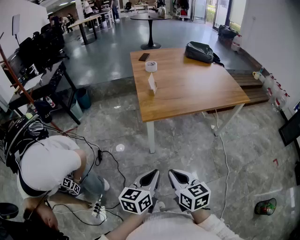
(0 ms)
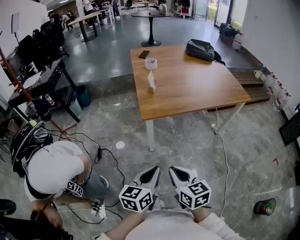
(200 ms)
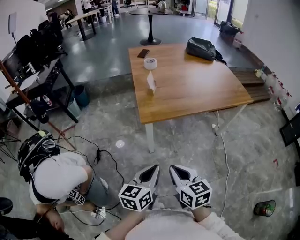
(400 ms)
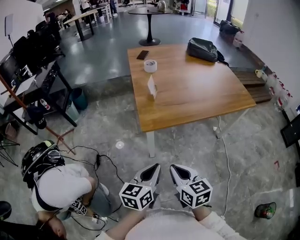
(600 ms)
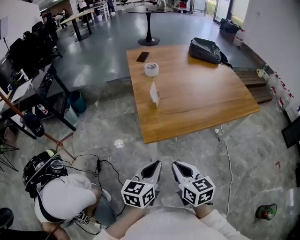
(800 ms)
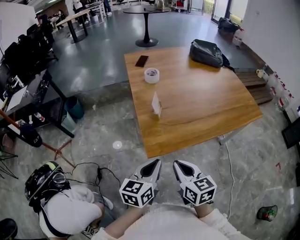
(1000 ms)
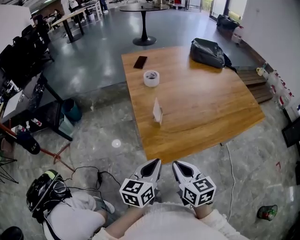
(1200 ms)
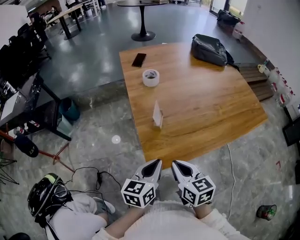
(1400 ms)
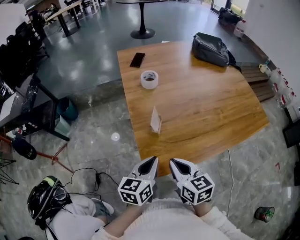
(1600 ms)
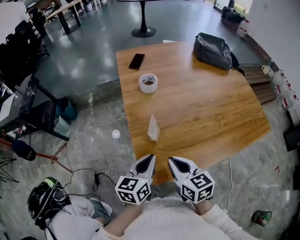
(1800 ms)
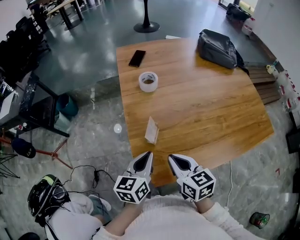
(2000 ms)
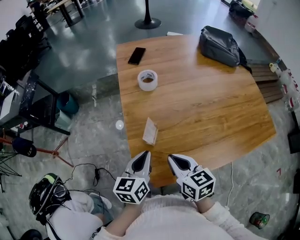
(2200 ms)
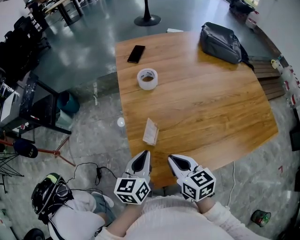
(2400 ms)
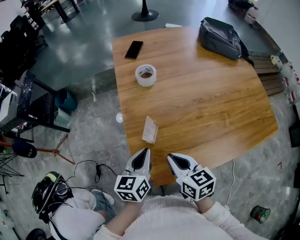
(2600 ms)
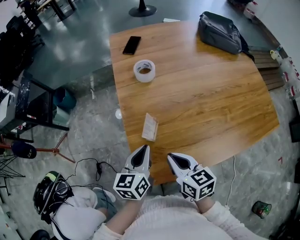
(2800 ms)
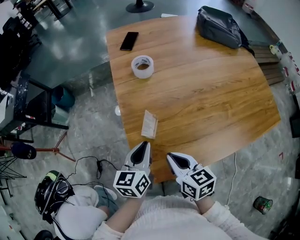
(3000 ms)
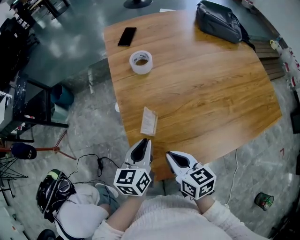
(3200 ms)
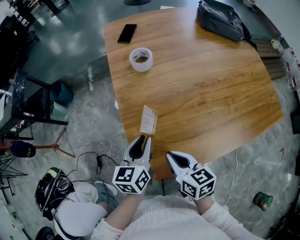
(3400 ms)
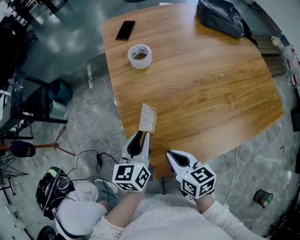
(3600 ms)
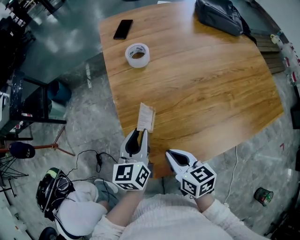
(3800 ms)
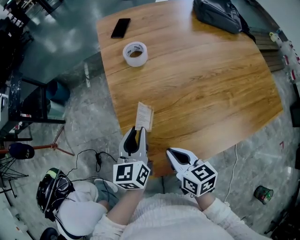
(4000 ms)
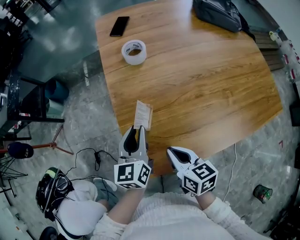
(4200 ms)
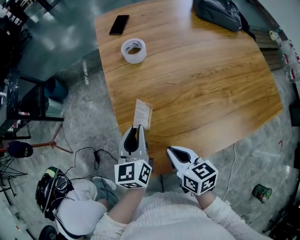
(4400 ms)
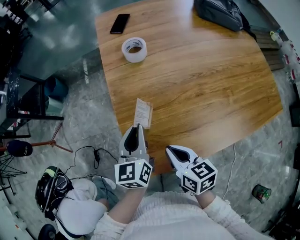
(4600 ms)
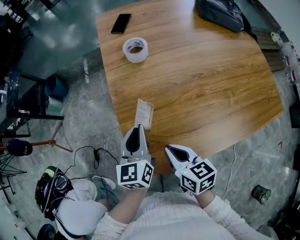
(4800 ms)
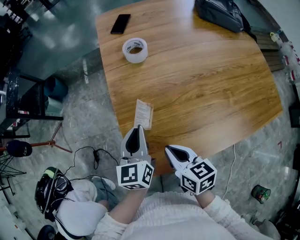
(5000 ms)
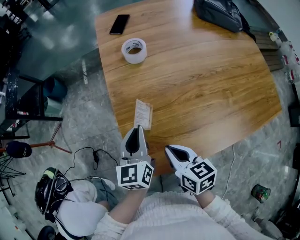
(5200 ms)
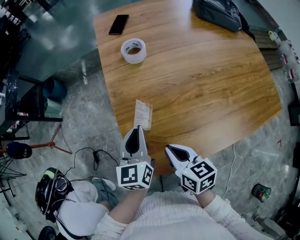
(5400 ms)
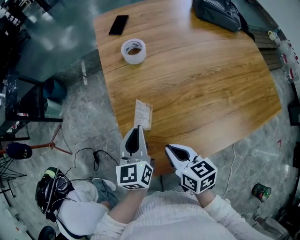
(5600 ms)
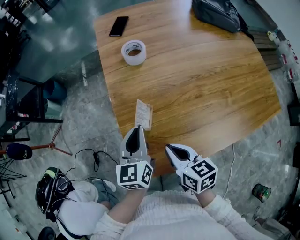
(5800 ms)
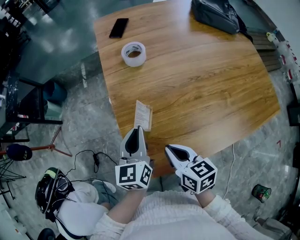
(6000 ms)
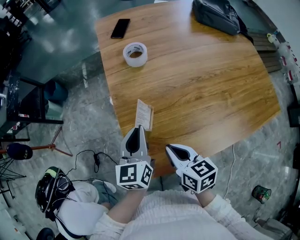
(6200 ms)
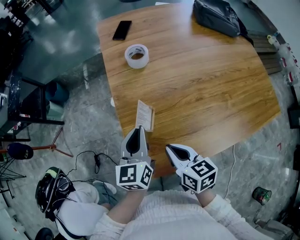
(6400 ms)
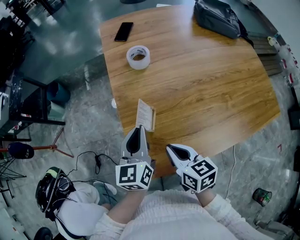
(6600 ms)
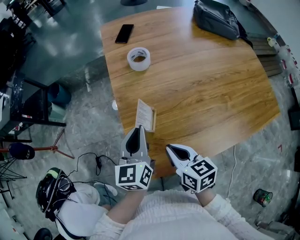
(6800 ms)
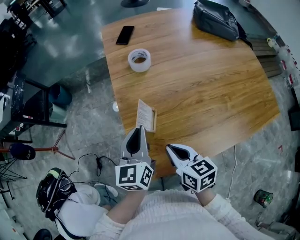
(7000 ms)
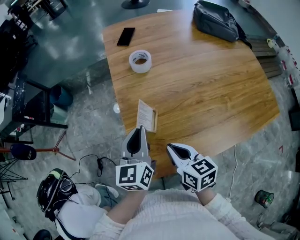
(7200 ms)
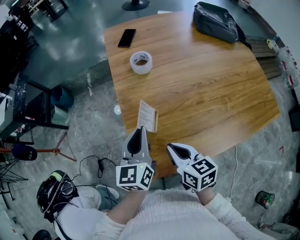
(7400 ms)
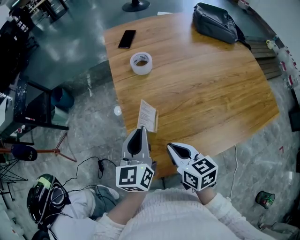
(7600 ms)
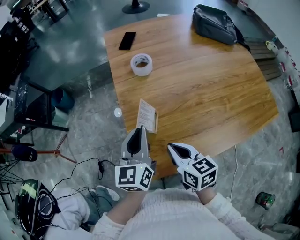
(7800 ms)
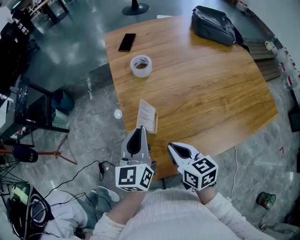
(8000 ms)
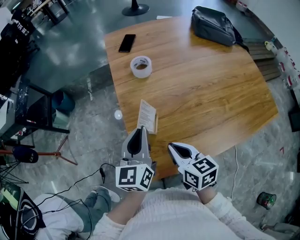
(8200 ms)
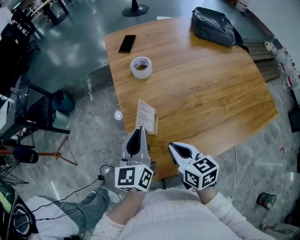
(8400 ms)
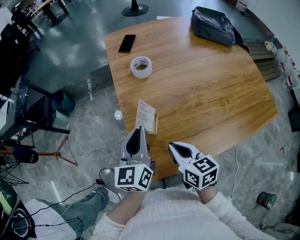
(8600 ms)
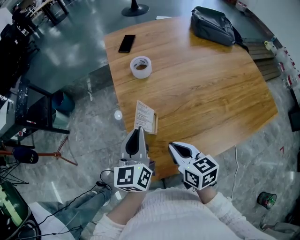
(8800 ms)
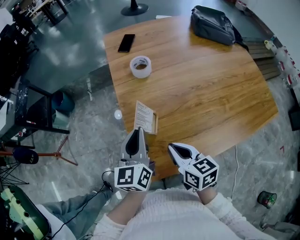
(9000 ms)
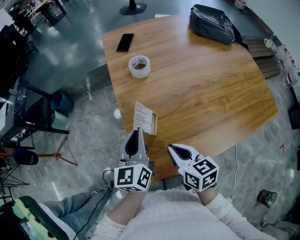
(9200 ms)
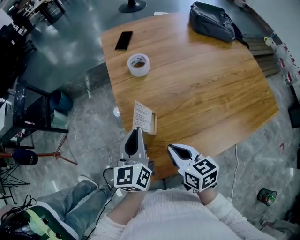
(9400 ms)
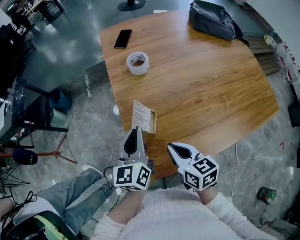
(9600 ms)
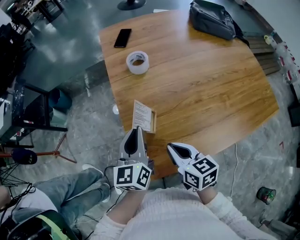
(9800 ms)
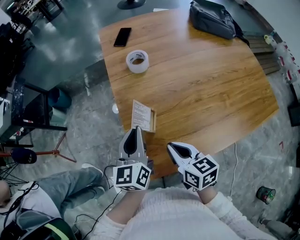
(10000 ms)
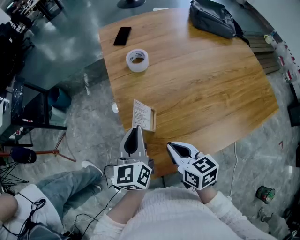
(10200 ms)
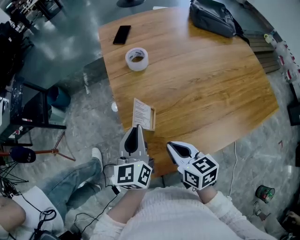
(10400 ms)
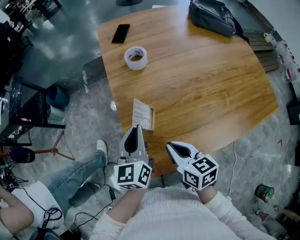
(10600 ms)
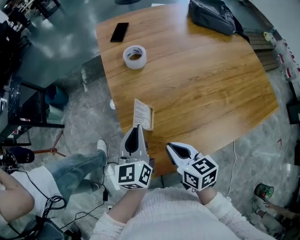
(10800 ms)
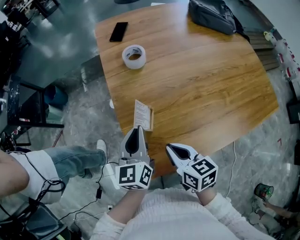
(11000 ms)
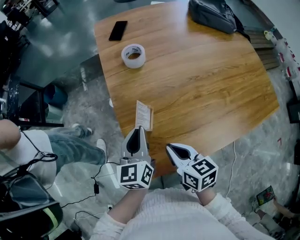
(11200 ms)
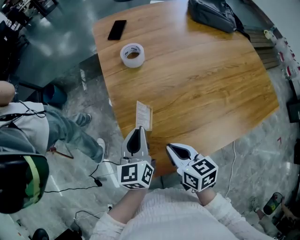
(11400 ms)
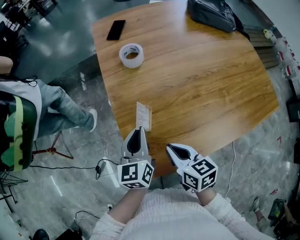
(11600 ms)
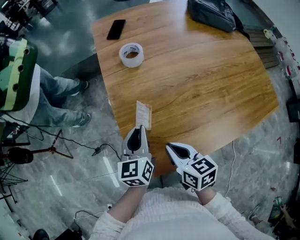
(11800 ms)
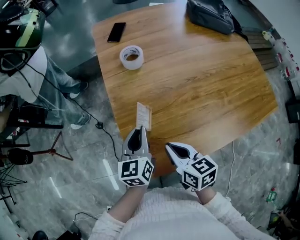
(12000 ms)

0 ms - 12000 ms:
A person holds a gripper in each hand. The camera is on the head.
0 ms - 1600 ms: The pair of grippers is taken forward, some 40 cm.
1600 ms - 3000 ms: Both grippers move forward, approximately 10 cm.
3000 ms - 6000 ms: The grippers move only a little.
6000 ms - 7600 ms: The left gripper goes some 5 cm upward.
7600 ms - 10400 ms: The grippers make only small movements.
10400 ms - 12000 ms: The left gripper shifts some 5 cm downward.

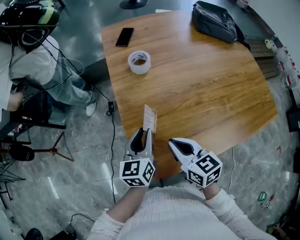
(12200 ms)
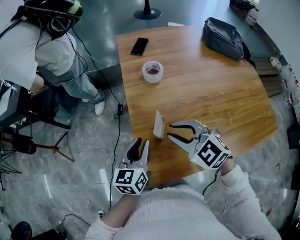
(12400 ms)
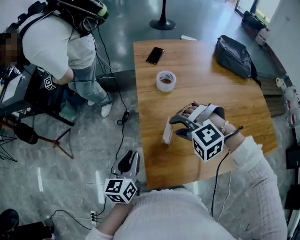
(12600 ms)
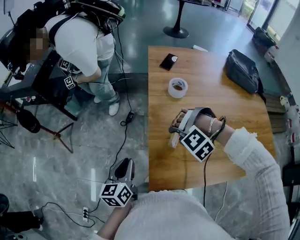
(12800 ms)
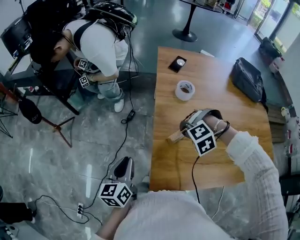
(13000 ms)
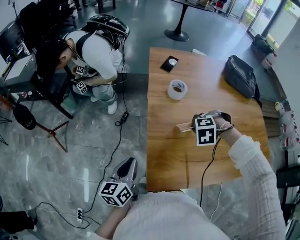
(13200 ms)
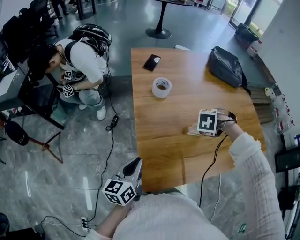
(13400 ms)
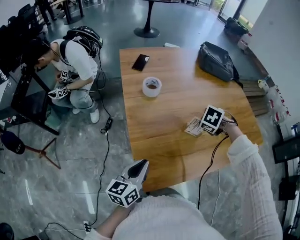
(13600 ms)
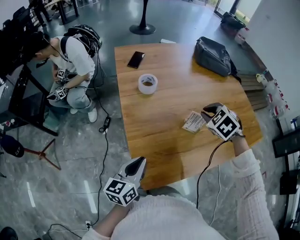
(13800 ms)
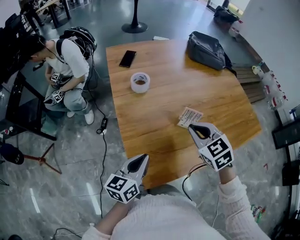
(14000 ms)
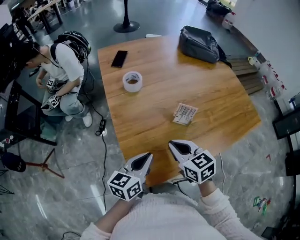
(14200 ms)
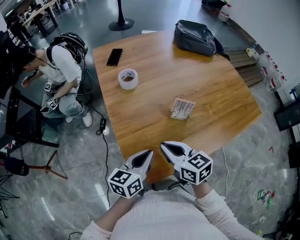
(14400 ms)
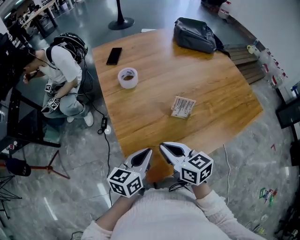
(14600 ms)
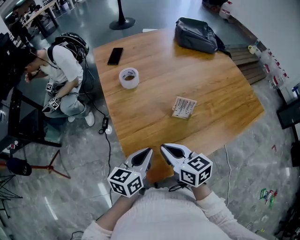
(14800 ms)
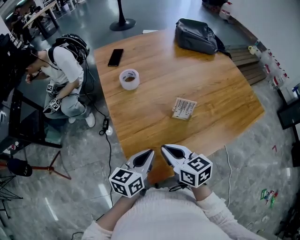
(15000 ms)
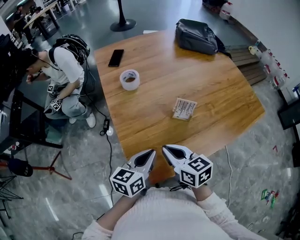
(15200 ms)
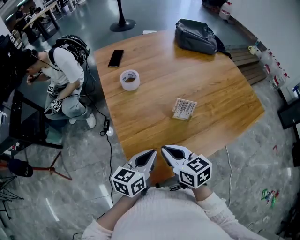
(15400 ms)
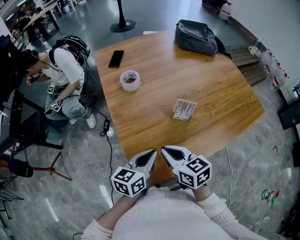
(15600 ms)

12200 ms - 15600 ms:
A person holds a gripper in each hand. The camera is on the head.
12200 ms - 13800 ms: The right gripper swings up and down, approximately 10 cm each way, with 2 reversals, points its fingers about 30 degrees further downward, and opens, then closes again.
13800 ms - 15600 ms: The right gripper shifts roughly 20 cm backward and to the left, and tilts its fingers approximately 30 degrees upward; the left gripper heads to the right, covering approximately 10 cm.

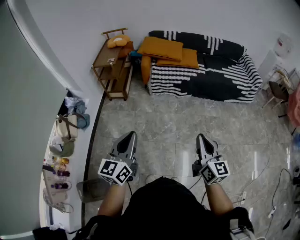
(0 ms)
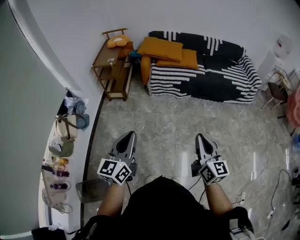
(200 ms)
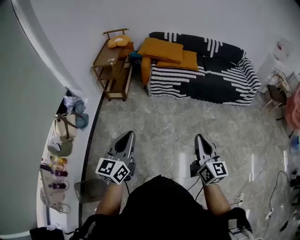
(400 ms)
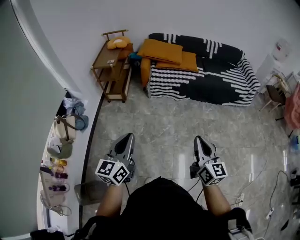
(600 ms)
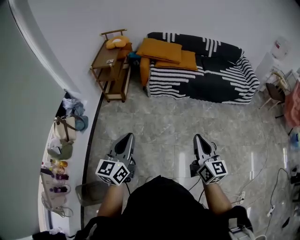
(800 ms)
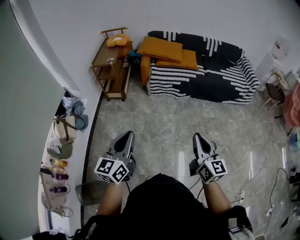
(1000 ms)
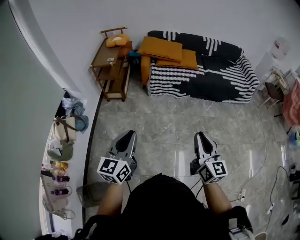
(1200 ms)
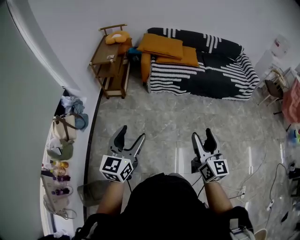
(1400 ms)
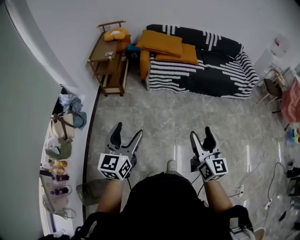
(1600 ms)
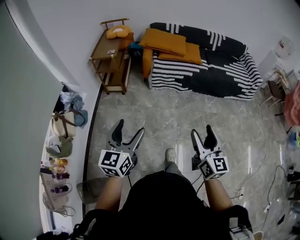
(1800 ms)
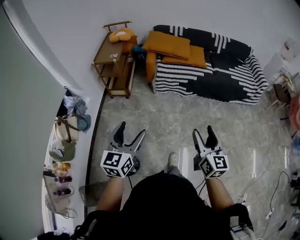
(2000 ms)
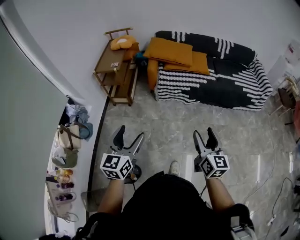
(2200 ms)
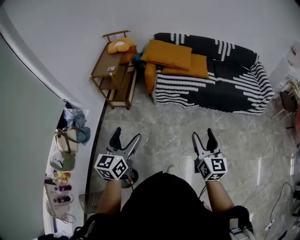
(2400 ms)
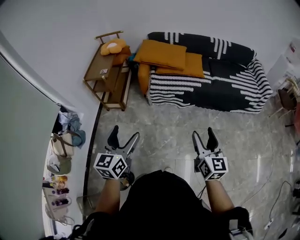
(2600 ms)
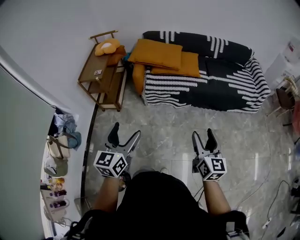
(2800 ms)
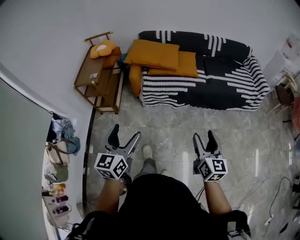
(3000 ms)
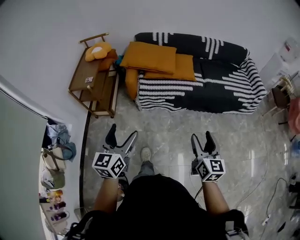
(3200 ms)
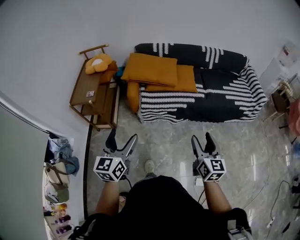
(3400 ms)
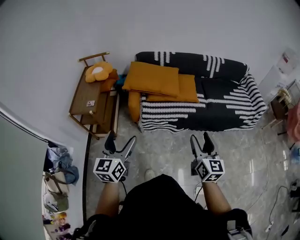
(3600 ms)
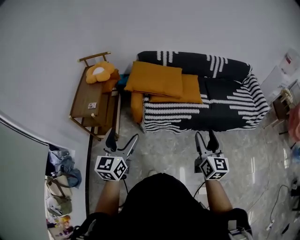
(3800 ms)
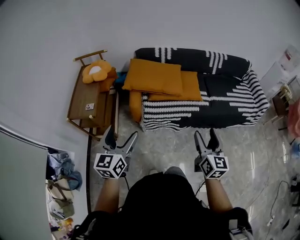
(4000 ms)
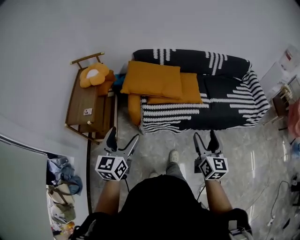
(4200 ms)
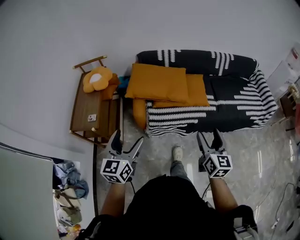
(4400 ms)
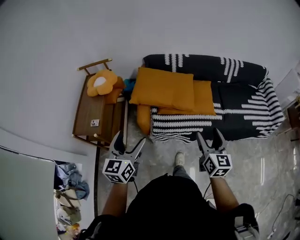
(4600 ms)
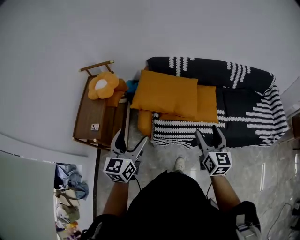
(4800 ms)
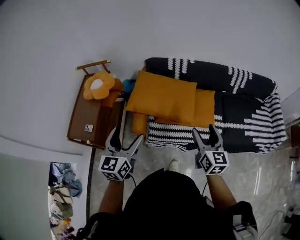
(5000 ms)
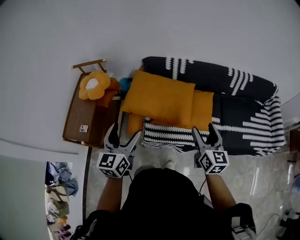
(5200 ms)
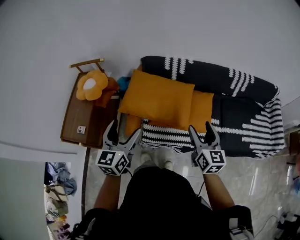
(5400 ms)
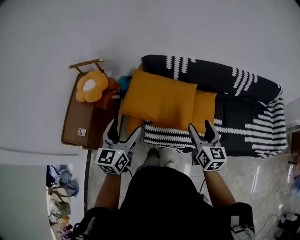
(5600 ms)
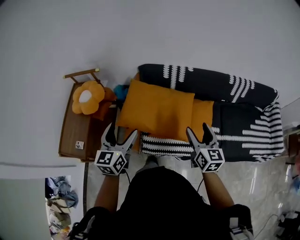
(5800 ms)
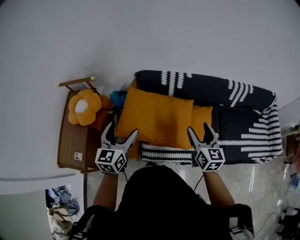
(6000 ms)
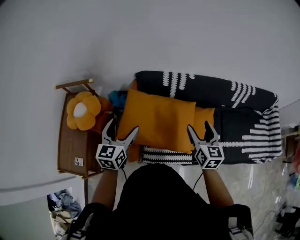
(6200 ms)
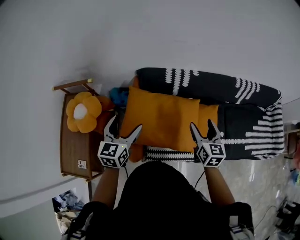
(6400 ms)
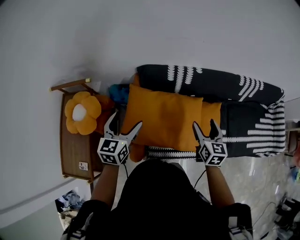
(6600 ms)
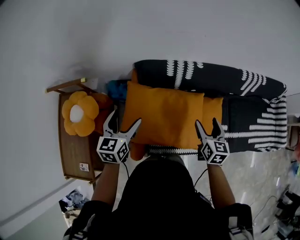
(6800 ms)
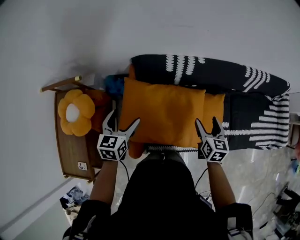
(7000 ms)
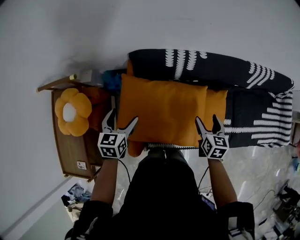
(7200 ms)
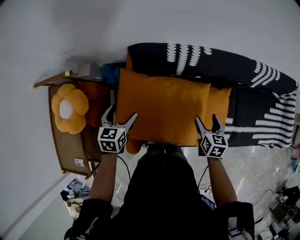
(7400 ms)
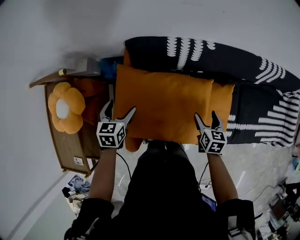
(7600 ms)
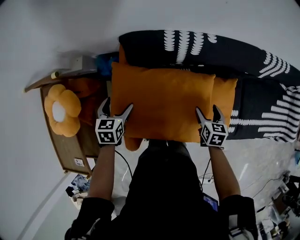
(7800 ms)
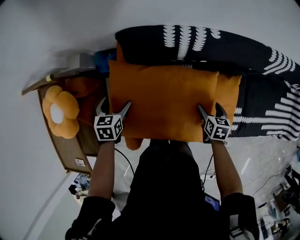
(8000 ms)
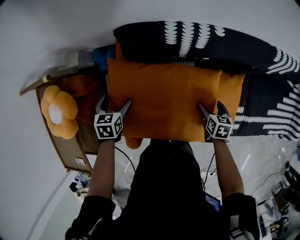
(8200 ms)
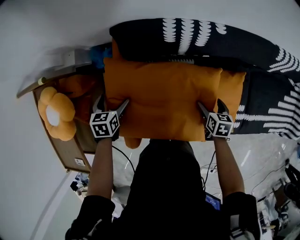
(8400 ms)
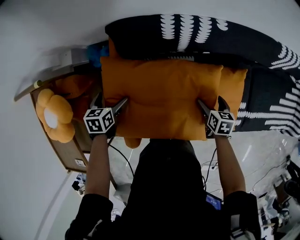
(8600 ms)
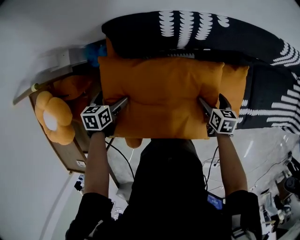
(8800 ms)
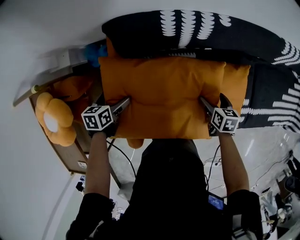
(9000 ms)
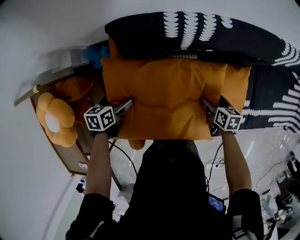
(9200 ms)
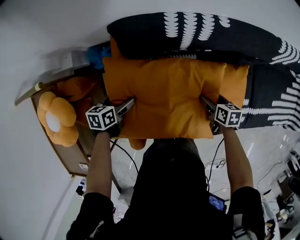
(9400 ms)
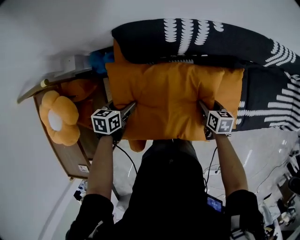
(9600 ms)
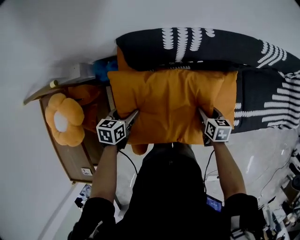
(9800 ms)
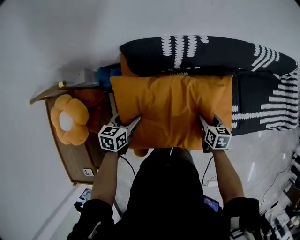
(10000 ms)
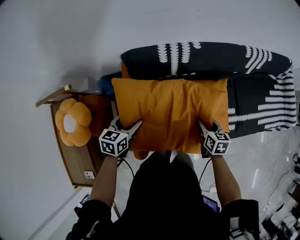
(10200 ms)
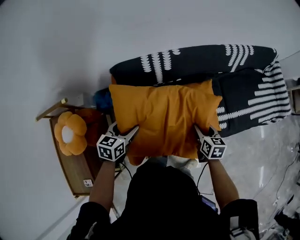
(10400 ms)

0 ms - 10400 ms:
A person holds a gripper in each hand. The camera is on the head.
0 ms - 1400 ms: The grippers both shift to the left by about 5 cm. The left gripper opens. Meanwhile the right gripper opens its fingers.
1400 ms - 3000 ms: The left gripper shifts roughly 30 cm forward. Meanwhile the right gripper heads forward and to the right, covering about 30 cm.
3000 ms - 4400 ms: Both grippers move forward, approximately 30 cm.
4400 ms - 6000 ms: Both grippers are carried forward, about 40 cm.
6000 ms - 7400 ms: The two grippers go about 25 cm downward and forward. The left gripper changes its angle by roughly 30 degrees, while the right gripper turns by some 30 degrees.
7400 ms - 9000 ms: The grippers both shift downward by some 20 cm. The left gripper rotates about 30 degrees; the right gripper changes its angle by roughly 20 degrees.
9000 ms - 10400 ms: The left gripper heads upward and to the right, covering roughly 25 cm, rotates about 30 degrees, and closes, while the right gripper travels upward and backward by about 20 cm, turns by approximately 20 degrees, and closes.
